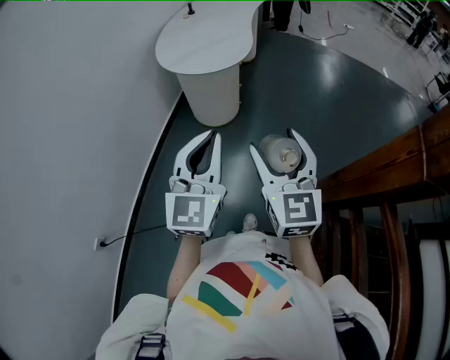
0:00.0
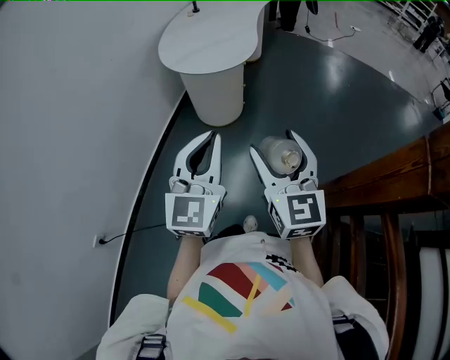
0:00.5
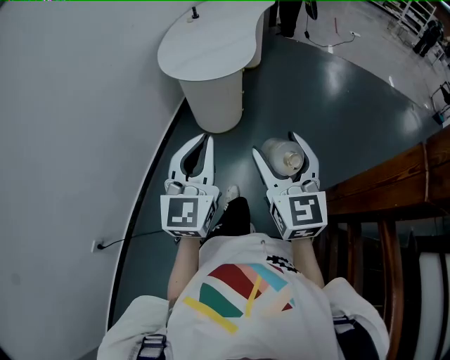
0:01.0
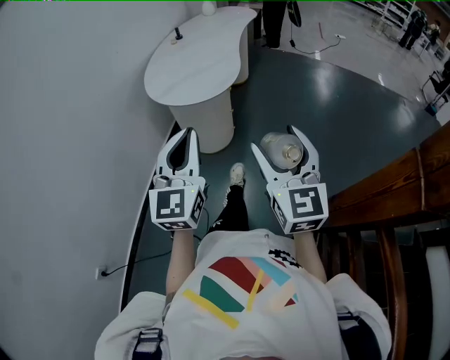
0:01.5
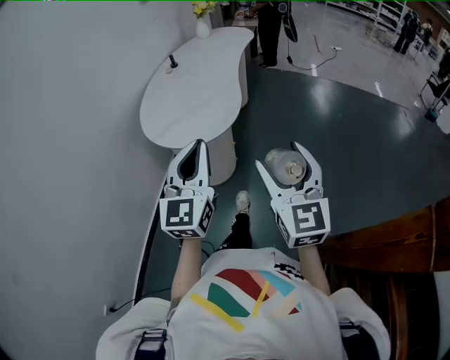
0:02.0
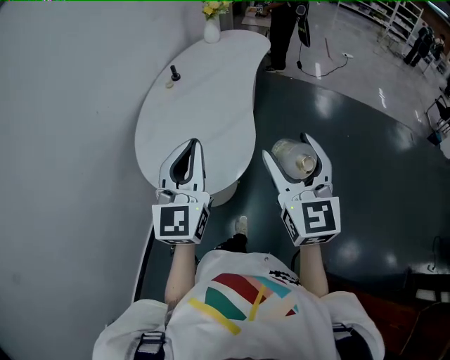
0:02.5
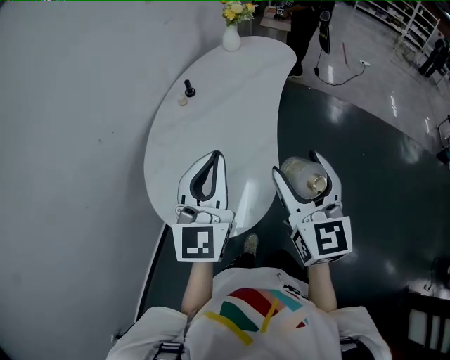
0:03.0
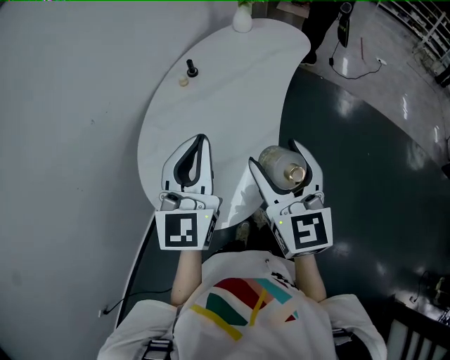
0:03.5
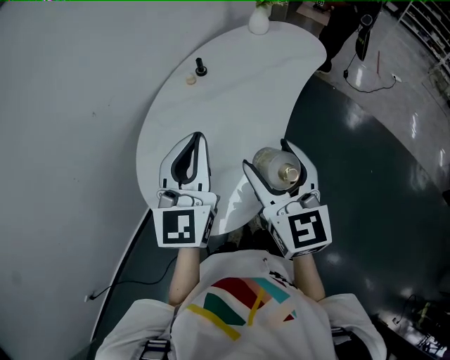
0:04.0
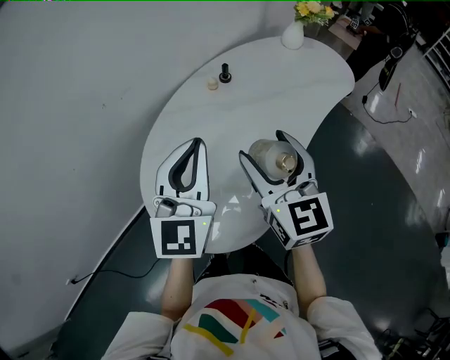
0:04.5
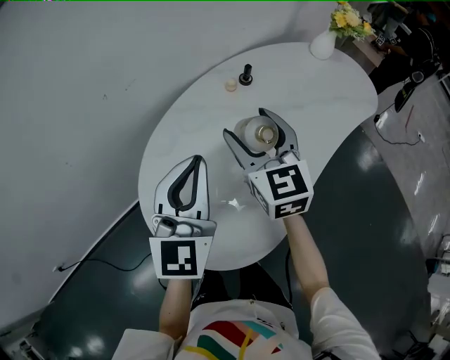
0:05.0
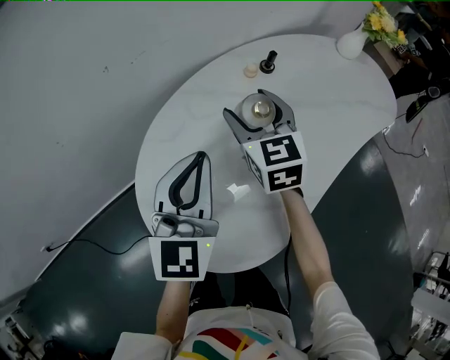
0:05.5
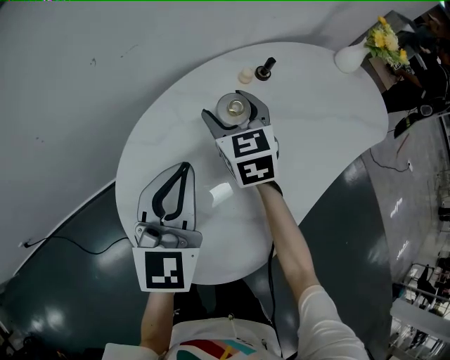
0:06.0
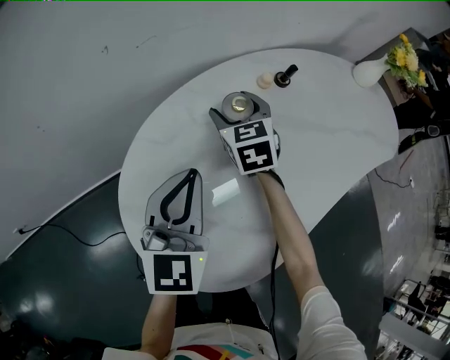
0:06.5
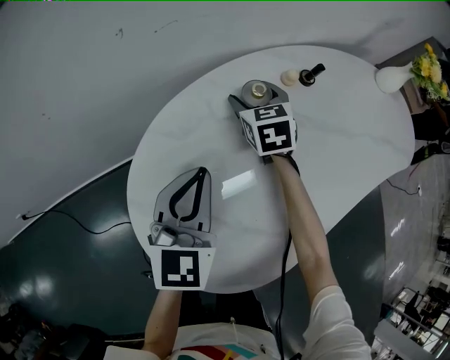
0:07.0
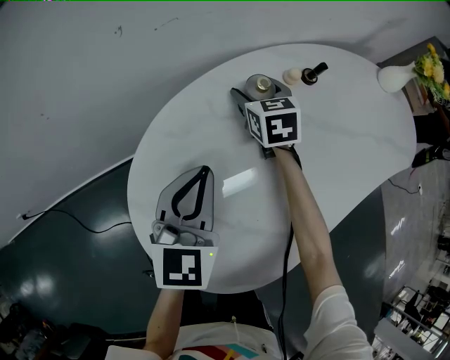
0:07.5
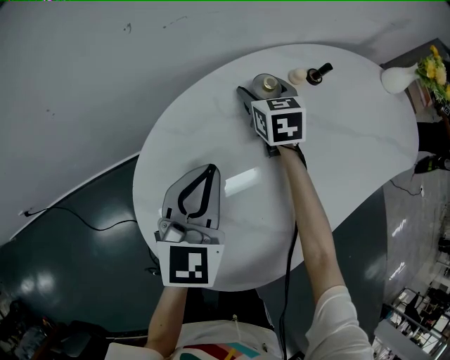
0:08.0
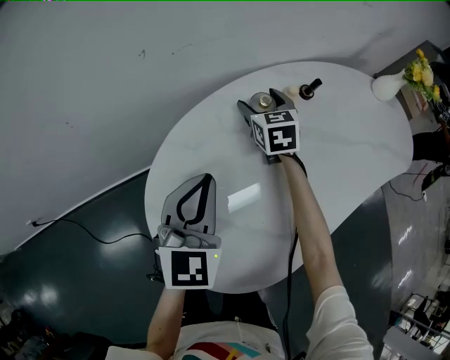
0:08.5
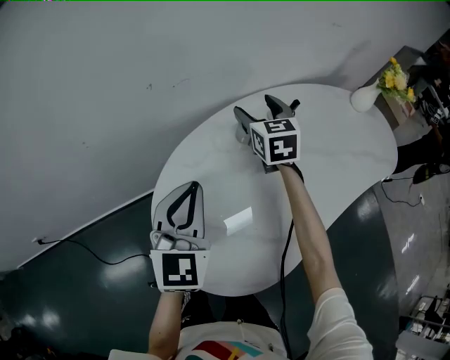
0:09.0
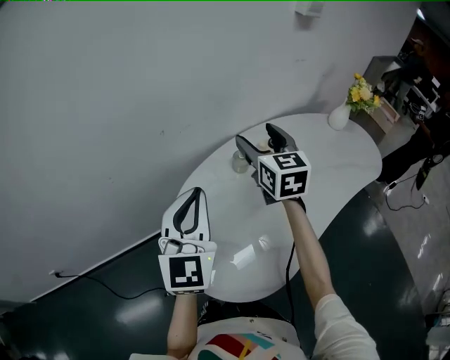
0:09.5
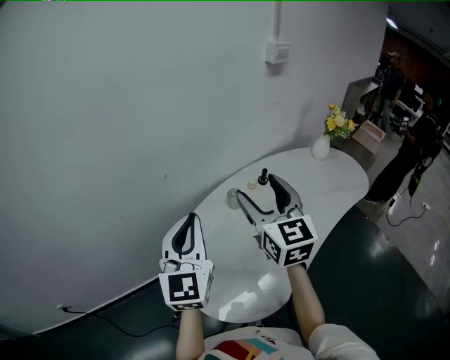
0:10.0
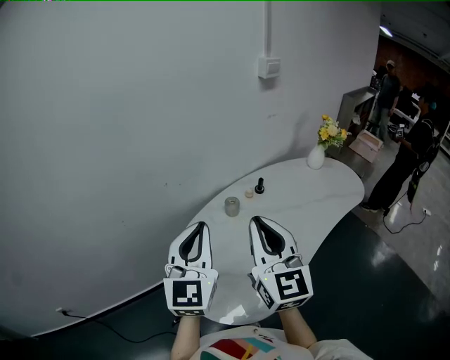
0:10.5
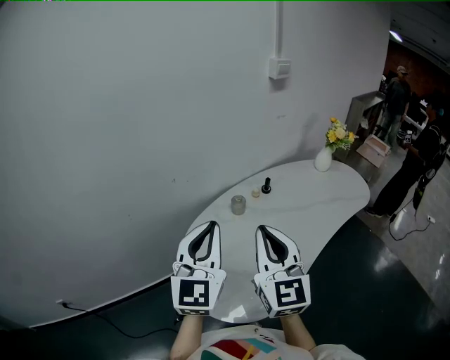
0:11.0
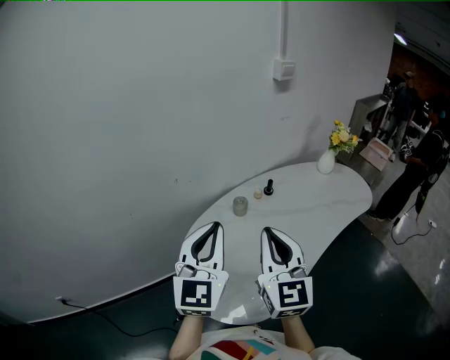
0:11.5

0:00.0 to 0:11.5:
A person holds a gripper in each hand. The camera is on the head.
0:00.0 to 0:02.0: Both grippers travel together forward, some 25 cm.
0:02.0 to 0:04.0: The pair of grippers is taken forward, roughly 50 cm. The right gripper changes its angle by about 30 degrees.
0:04.0 to 0:06.0: The right gripper travels forward, downward and to the left by about 40 cm, and turns by roughly 30 degrees. Meanwhile the left gripper shifts some 20 cm downward, forward and to the left, and swivels roughly 30 degrees.
0:06.0 to 0:07.5: The left gripper is displaced downward by about 5 cm. Meanwhile the right gripper travels downward and forward by about 15 cm.
0:07.5 to 0:09.5: Both grippers move upward, approximately 25 cm. The right gripper turns by roughly 30 degrees.
0:09.5 to 0:11.5: The left gripper heads backward and upward, covering about 10 cm, while the right gripper moves backward, roughly 25 cm, and closes up.

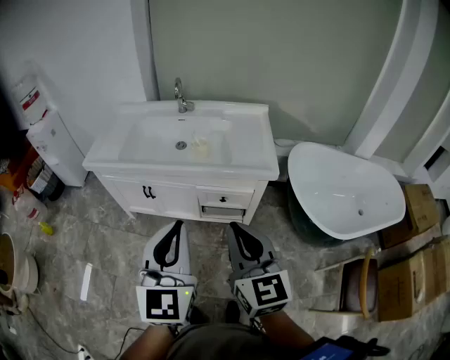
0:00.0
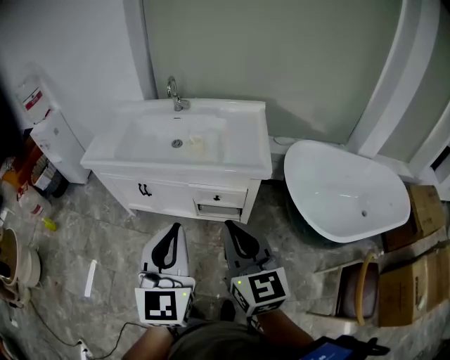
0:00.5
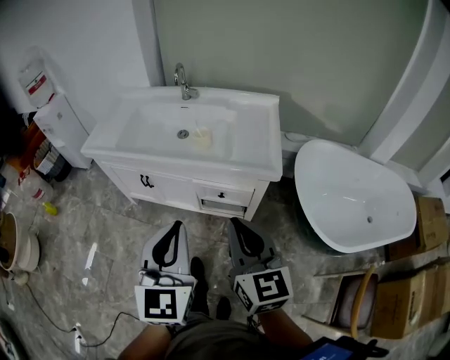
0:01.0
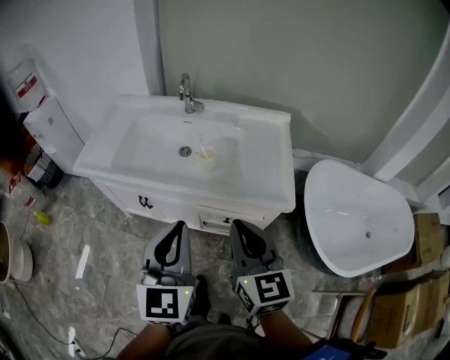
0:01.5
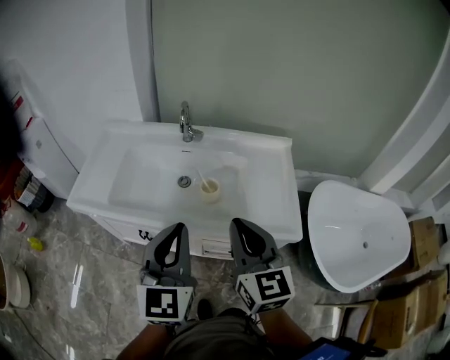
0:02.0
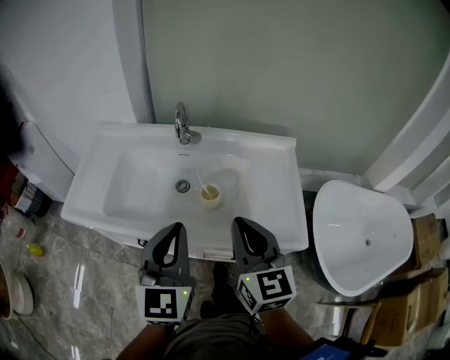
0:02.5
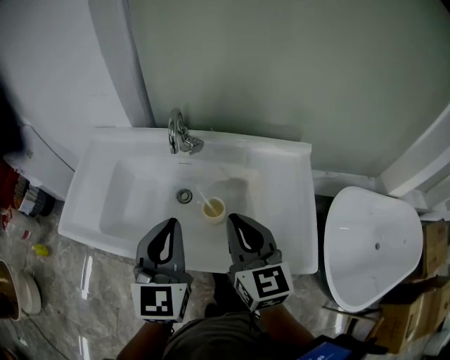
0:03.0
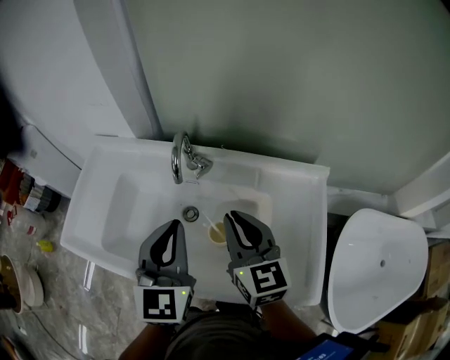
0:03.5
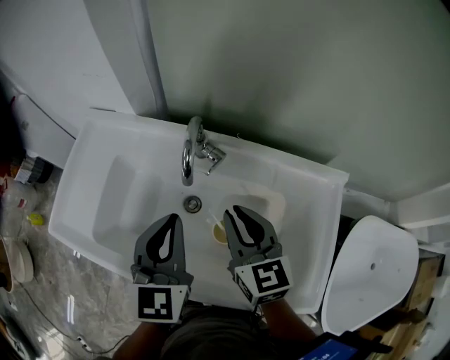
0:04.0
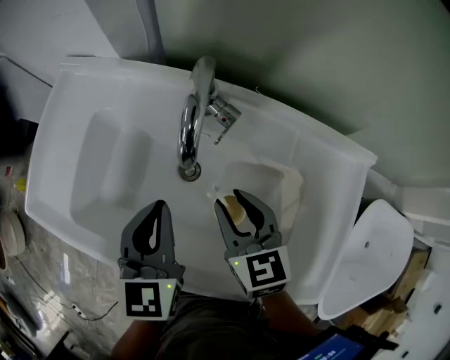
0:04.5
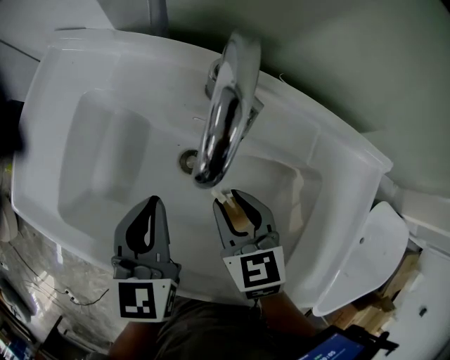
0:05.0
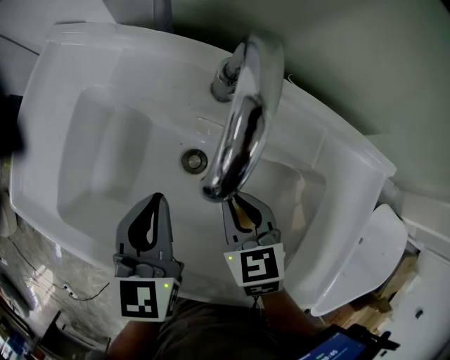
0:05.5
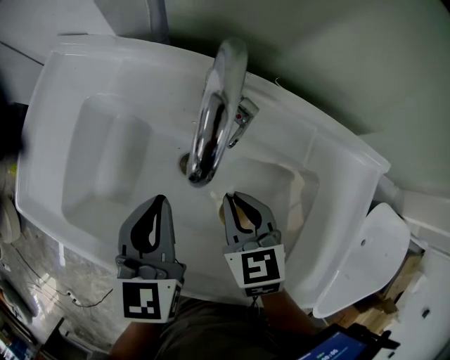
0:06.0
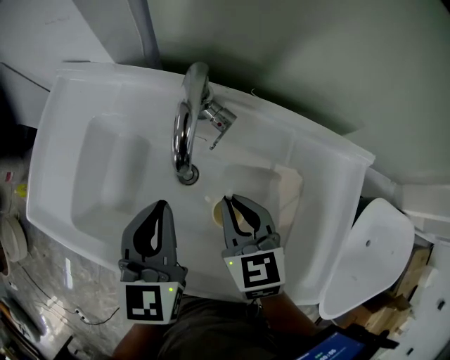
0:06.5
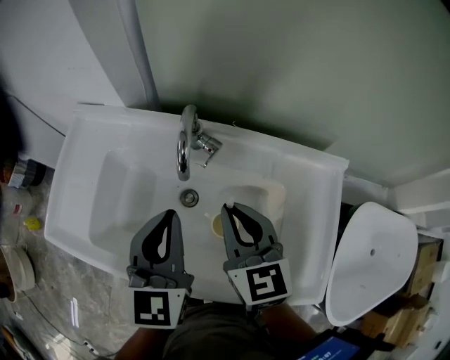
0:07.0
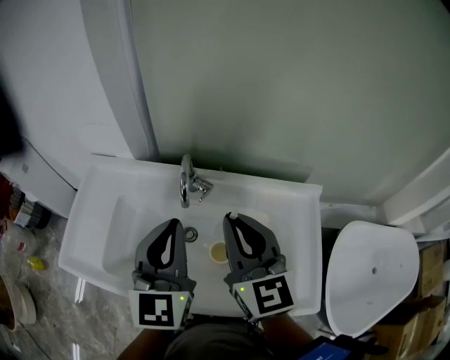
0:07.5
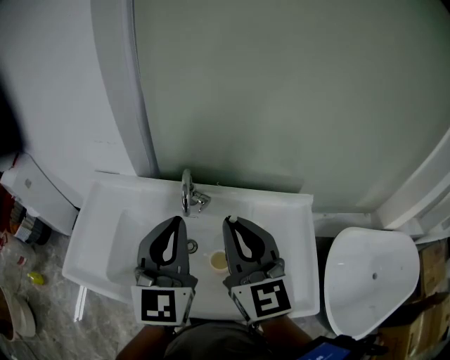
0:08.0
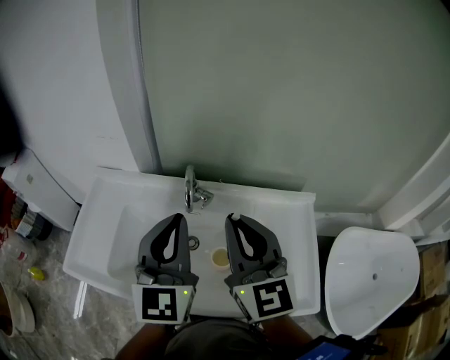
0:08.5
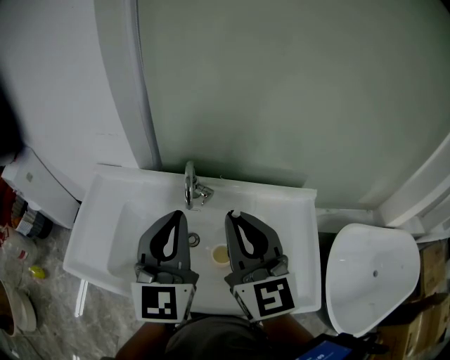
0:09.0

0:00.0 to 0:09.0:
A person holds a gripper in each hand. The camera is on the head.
0:00.0 to 0:02.0: The two grippers go some 30 cm forward.
0:02.0 to 0:04.5: The two grippers go some 40 cm forward and downward. The left gripper swivels some 30 degrees, while the right gripper changes its angle by roughly 30 degrees, and opens.
0:04.5 to 0:07.0: The grippers both shift upward by about 10 cm. The right gripper closes its fingers.
0:07.0 to 0:09.0: Both grippers travel together upward, about 15 cm. The right gripper swivels approximately 20 degrees; the left gripper changes its angle by roughly 20 degrees.

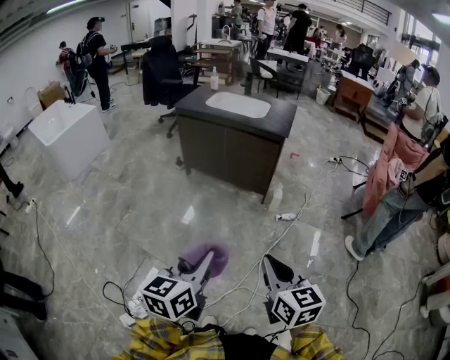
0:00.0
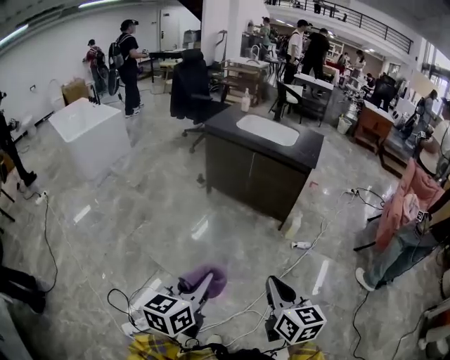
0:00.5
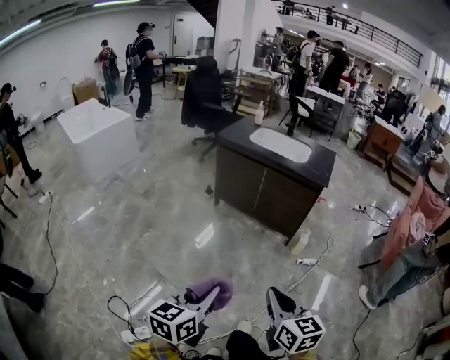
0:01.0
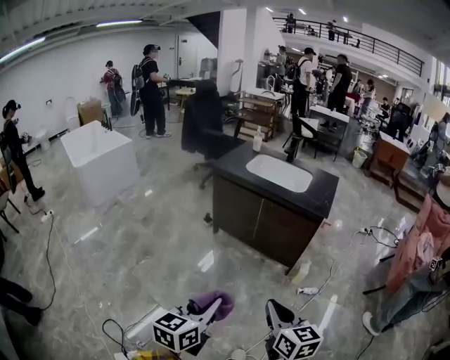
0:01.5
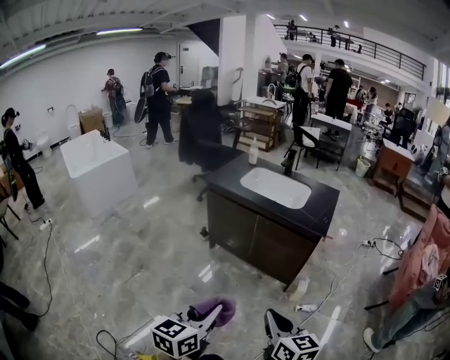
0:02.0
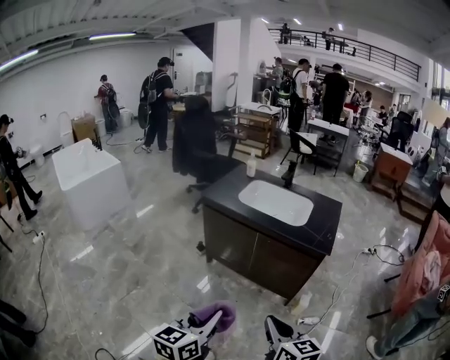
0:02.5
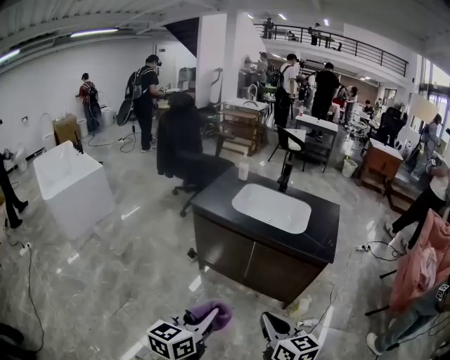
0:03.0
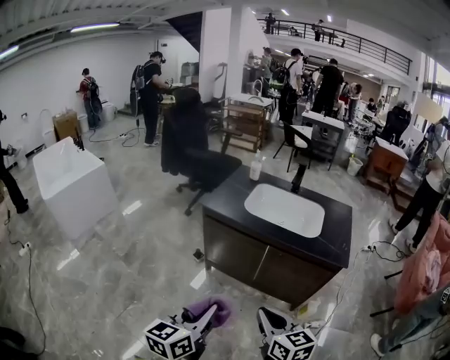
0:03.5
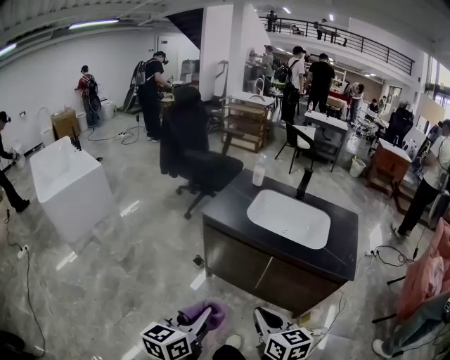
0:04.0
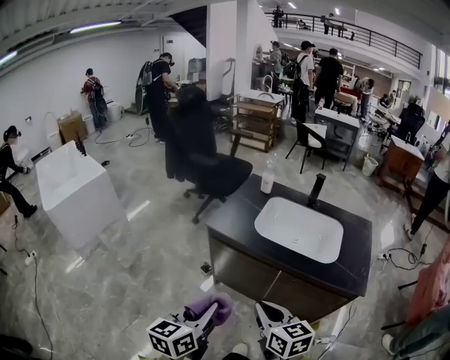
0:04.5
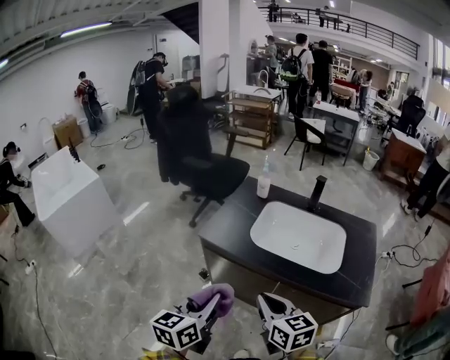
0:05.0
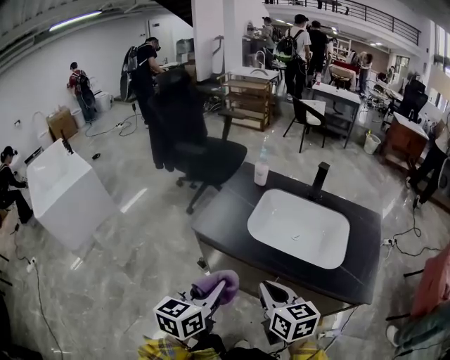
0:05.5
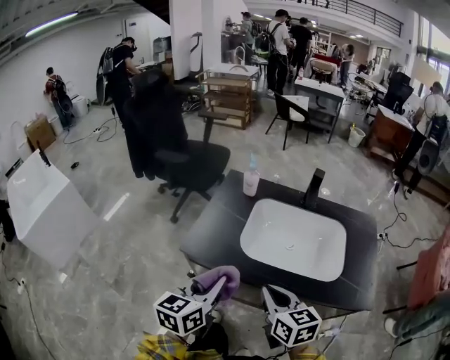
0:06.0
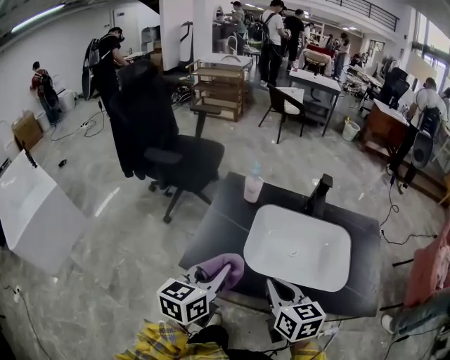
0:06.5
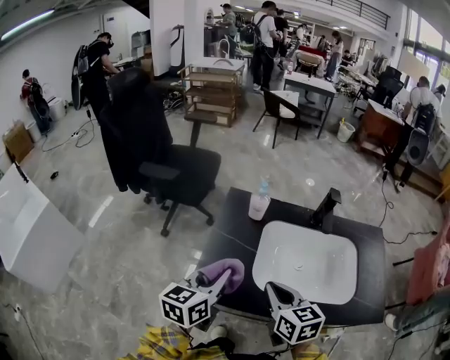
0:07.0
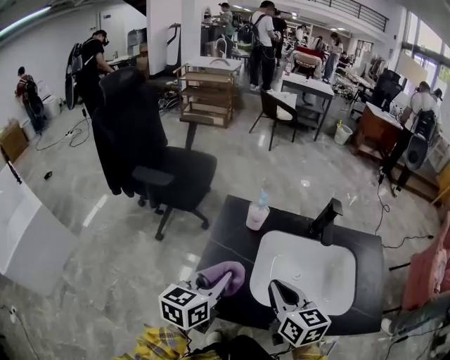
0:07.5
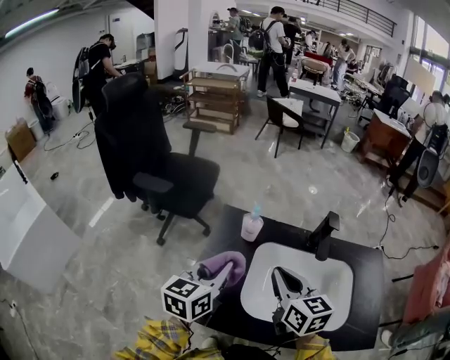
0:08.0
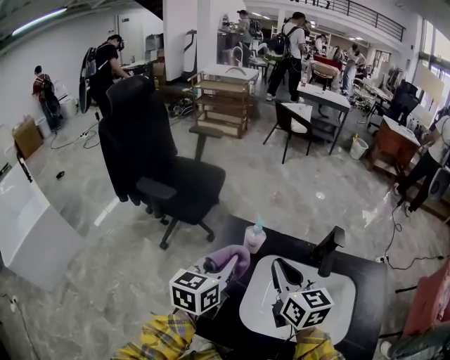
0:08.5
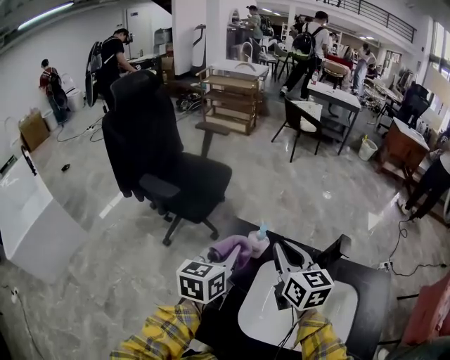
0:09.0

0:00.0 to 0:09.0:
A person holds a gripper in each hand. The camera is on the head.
0:00.0 to 0:02.0: Both grippers move forward, roughly 30 cm.
0:02.0 to 0:04.5: Both grippers are carried forward and to the left, about 50 cm.
0:04.5 to 0:07.0: The pair of grippers is taken forward, approximately 50 cm.
0:07.0 to 0:09.0: Both grippers move forward, roughly 25 cm.
